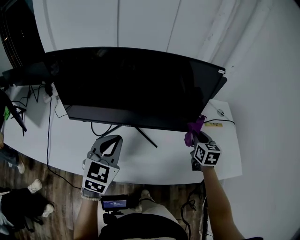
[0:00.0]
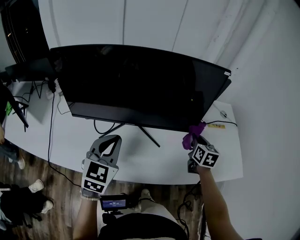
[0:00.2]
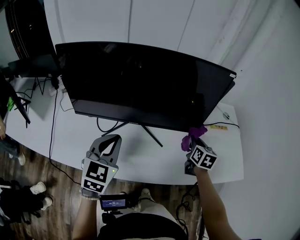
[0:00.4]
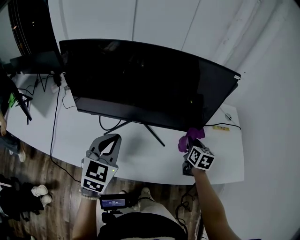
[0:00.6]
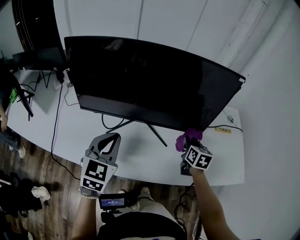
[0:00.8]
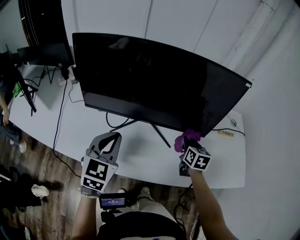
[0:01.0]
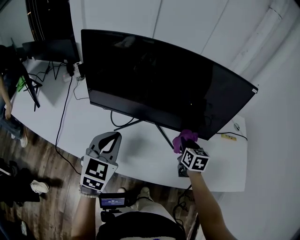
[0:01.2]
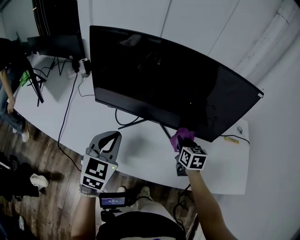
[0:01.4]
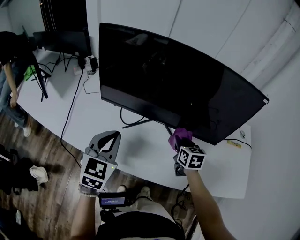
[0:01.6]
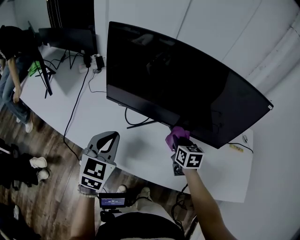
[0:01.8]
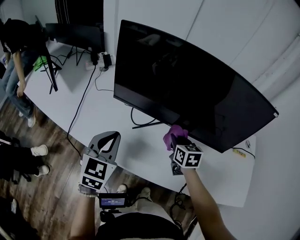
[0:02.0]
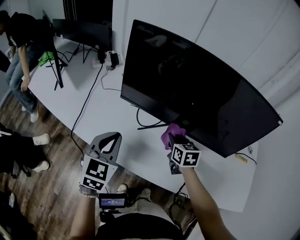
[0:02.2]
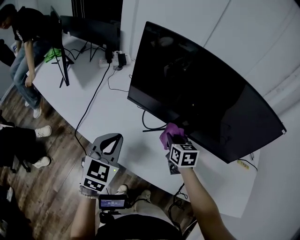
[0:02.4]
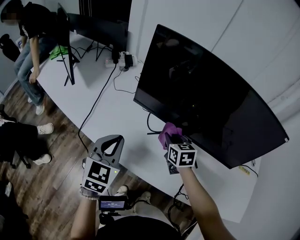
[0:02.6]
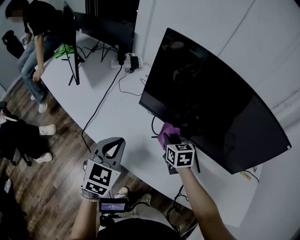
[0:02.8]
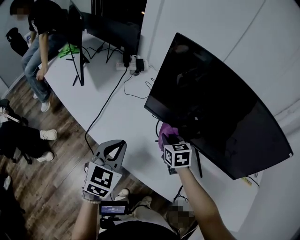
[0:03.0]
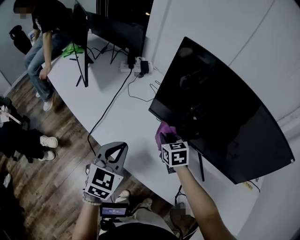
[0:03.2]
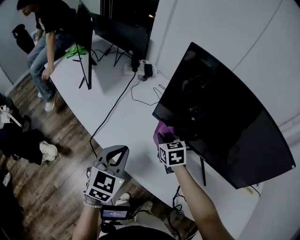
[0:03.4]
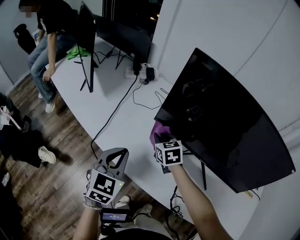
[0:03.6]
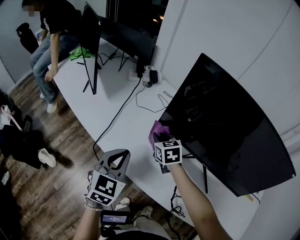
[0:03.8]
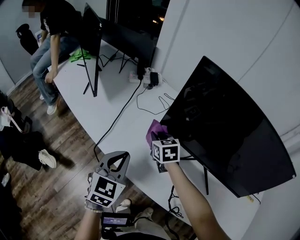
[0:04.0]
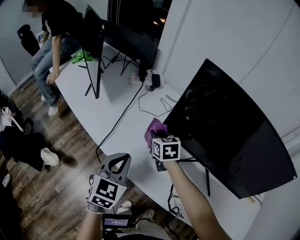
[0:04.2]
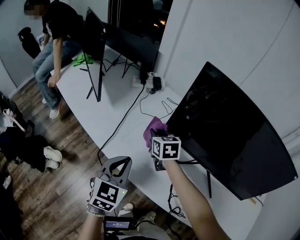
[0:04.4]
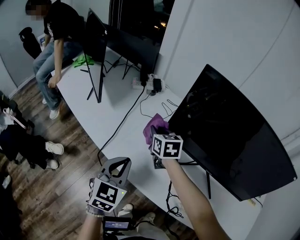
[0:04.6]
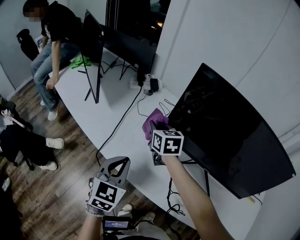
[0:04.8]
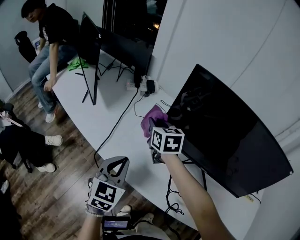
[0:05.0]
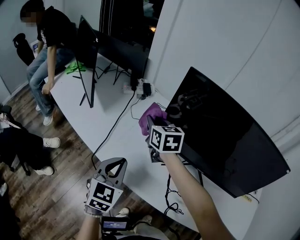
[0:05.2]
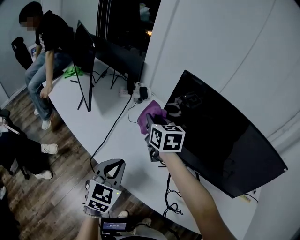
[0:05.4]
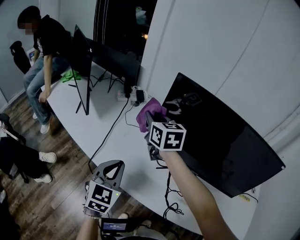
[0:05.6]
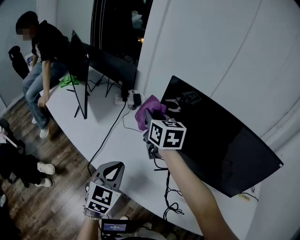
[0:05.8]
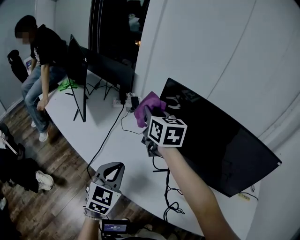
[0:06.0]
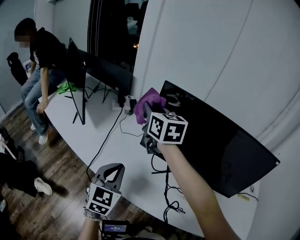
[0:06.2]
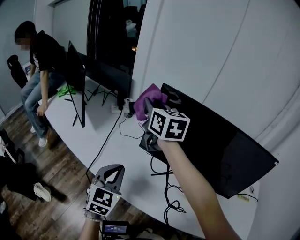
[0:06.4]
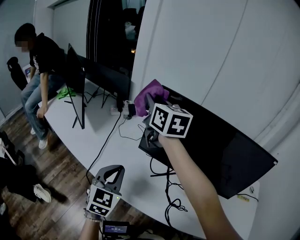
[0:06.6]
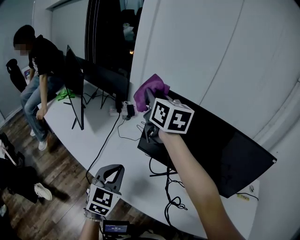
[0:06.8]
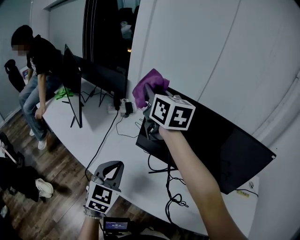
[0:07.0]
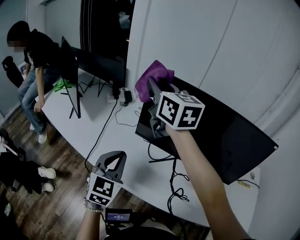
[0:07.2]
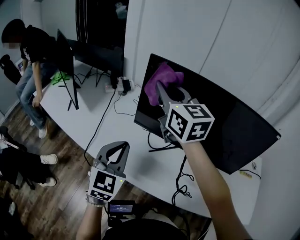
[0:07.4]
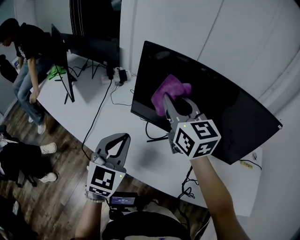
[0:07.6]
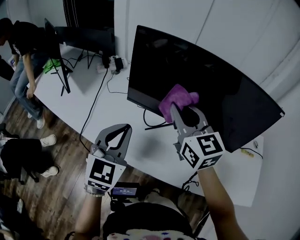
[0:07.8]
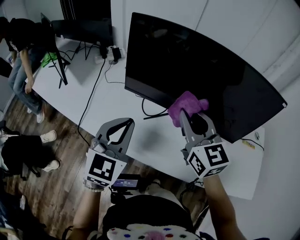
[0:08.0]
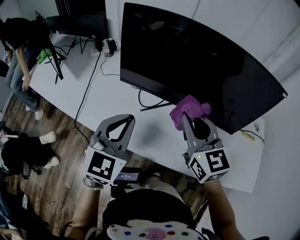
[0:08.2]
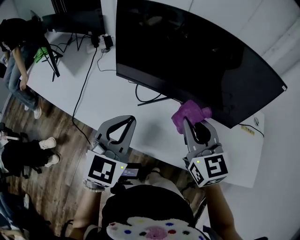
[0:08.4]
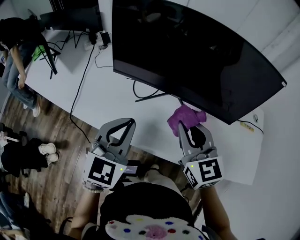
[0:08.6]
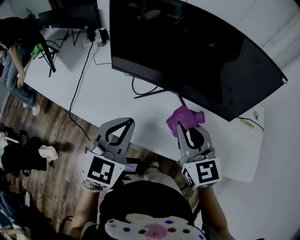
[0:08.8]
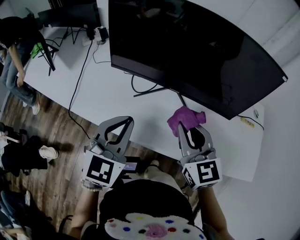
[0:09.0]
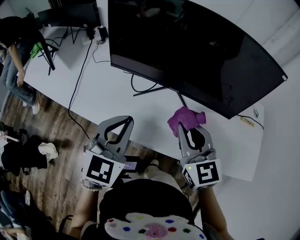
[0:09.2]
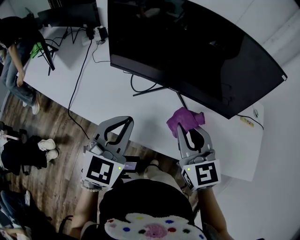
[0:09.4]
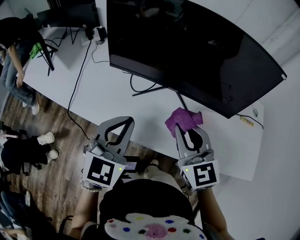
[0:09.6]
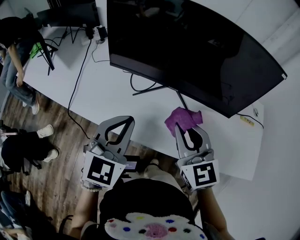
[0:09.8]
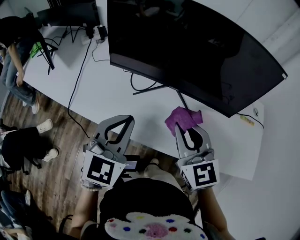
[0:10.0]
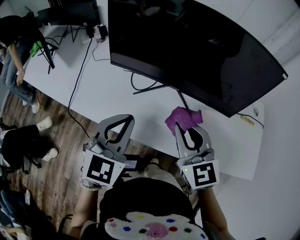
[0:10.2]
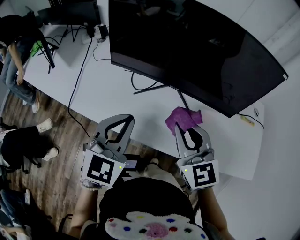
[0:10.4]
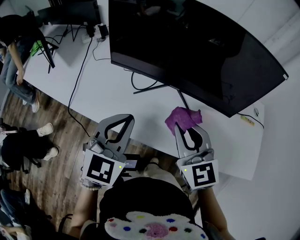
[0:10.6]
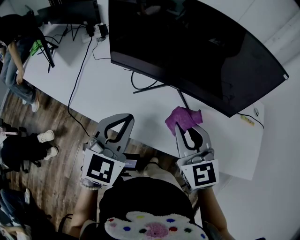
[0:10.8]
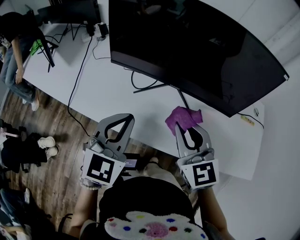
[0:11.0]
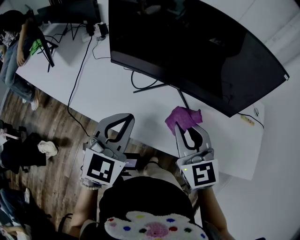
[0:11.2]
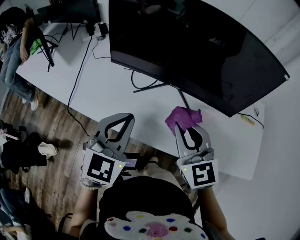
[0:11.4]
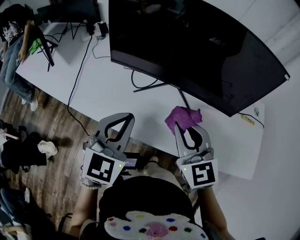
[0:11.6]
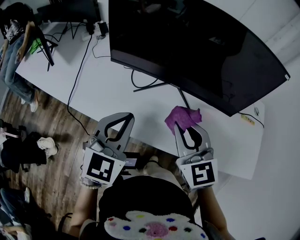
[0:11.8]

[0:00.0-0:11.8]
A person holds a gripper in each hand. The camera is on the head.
0:00.0 to 0:01.4: The right gripper goes roughly 20 cm to the left, while the left gripper heads to the left, covering approximately 10 cm.
0:01.4 to 0:03.0: The right gripper is displaced to the left by about 30 cm, and rotates some 30 degrees; the left gripper travels to the left by roughly 15 cm.
0:03.0 to 0:04.4: The right gripper heads to the left and forward, covering approximately 20 cm. The left gripper travels to the left by some 5 cm.
0:04.4 to 0:06.0: The left gripper heads upward, covering some 5 cm; the right gripper heads upward, covering roughly 25 cm, and rotates about 20 degrees.
0:06.0 to 0:07.4: The left gripper is displaced to the right by about 5 cm. Meanwhile the right gripper is displaced to the right, upward and backward by approximately 15 cm.
0:07.4 to 0:08.8: The right gripper travels backward, to the right and downward by approximately 35 cm, and changes its angle by some 20 degrees. Meanwhile the left gripper heads to the right and backward, covering roughly 15 cm.
0:08.8 to 0:10.4: The grippers move only a little.
0:10.4 to 0:11.8: Both grippers stay about where they are.

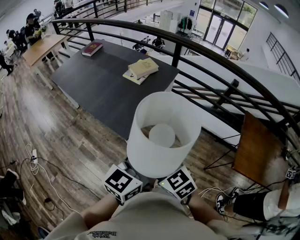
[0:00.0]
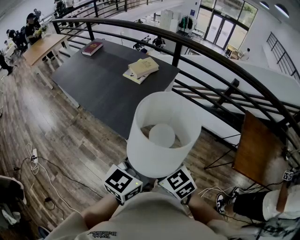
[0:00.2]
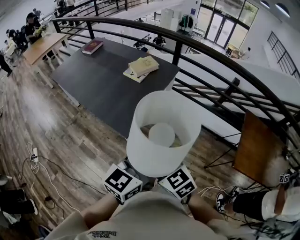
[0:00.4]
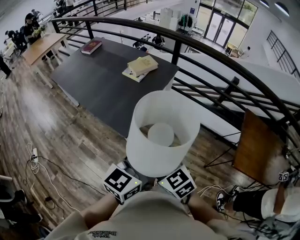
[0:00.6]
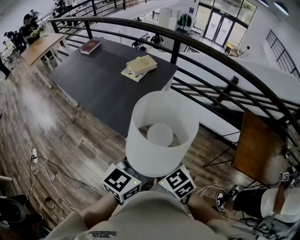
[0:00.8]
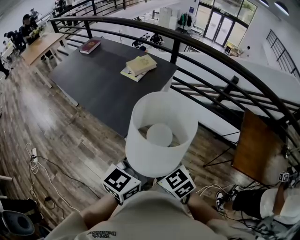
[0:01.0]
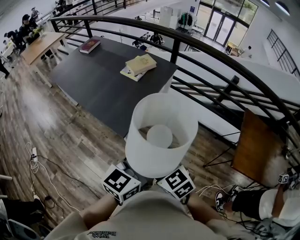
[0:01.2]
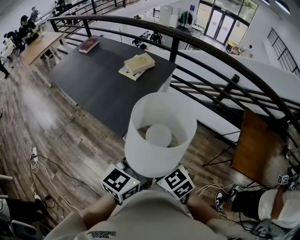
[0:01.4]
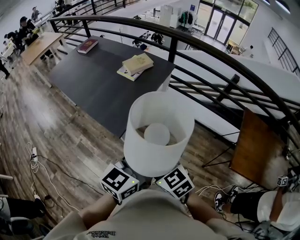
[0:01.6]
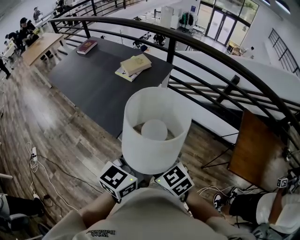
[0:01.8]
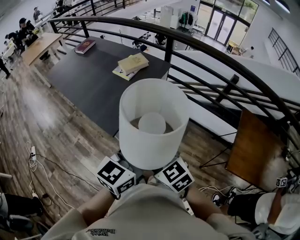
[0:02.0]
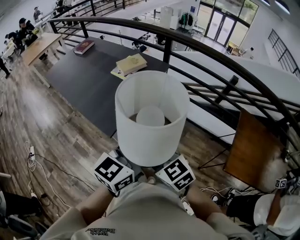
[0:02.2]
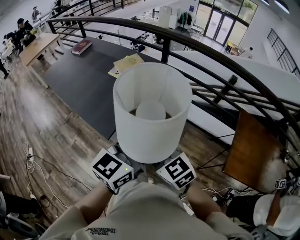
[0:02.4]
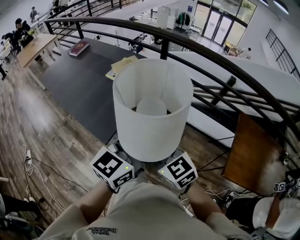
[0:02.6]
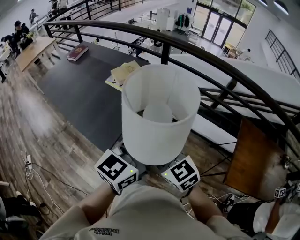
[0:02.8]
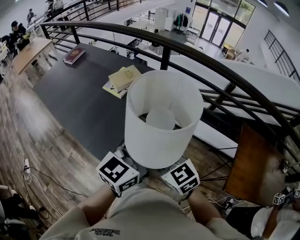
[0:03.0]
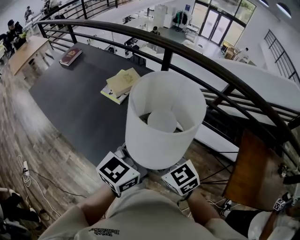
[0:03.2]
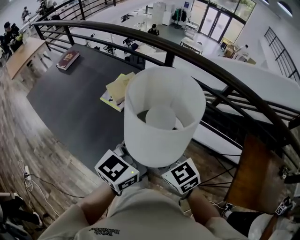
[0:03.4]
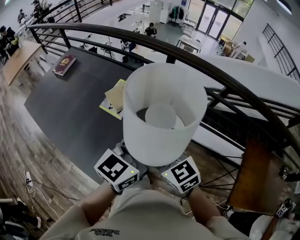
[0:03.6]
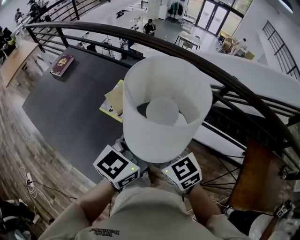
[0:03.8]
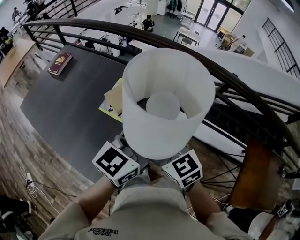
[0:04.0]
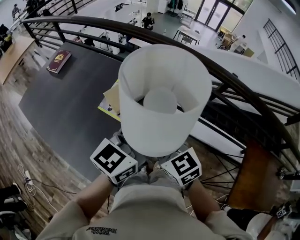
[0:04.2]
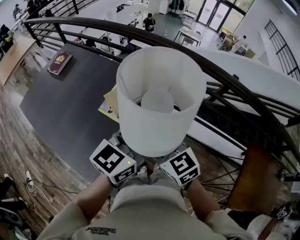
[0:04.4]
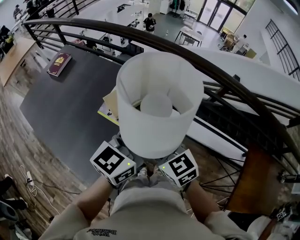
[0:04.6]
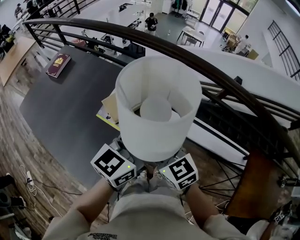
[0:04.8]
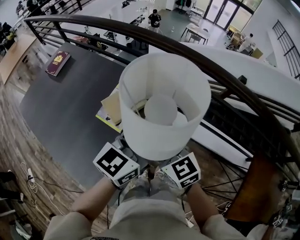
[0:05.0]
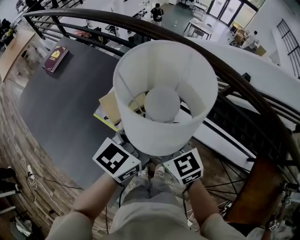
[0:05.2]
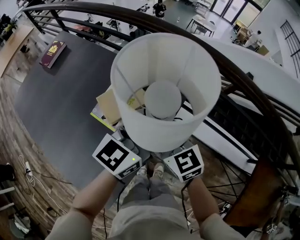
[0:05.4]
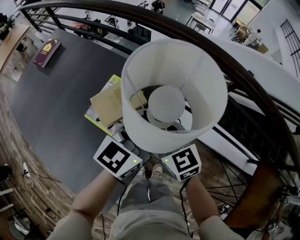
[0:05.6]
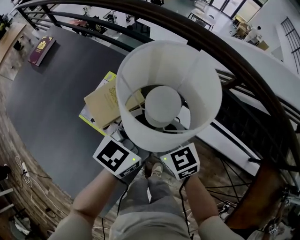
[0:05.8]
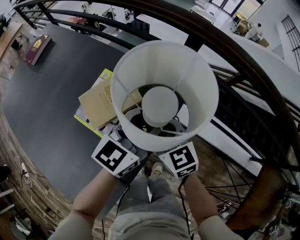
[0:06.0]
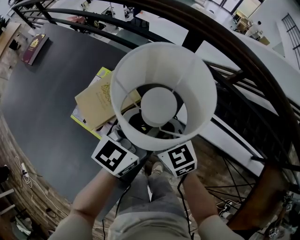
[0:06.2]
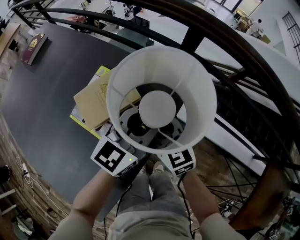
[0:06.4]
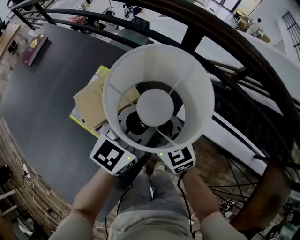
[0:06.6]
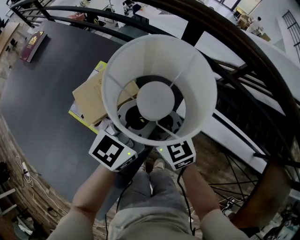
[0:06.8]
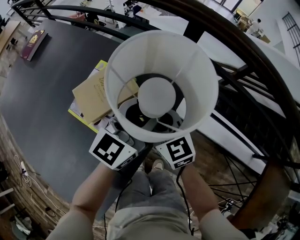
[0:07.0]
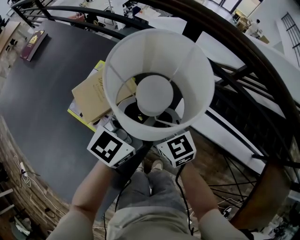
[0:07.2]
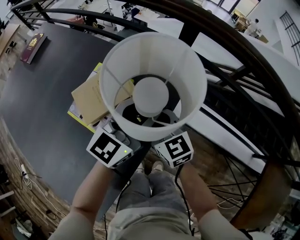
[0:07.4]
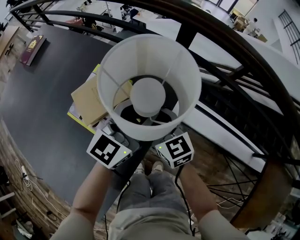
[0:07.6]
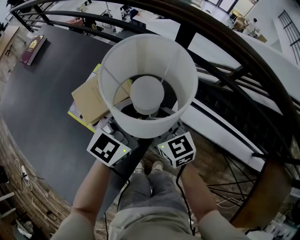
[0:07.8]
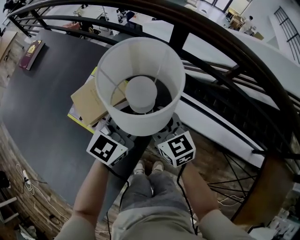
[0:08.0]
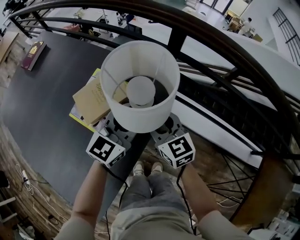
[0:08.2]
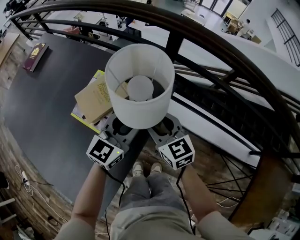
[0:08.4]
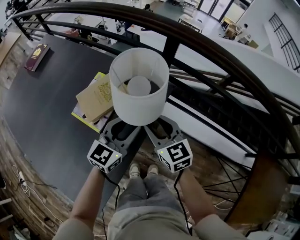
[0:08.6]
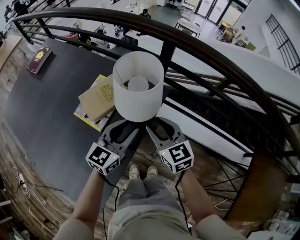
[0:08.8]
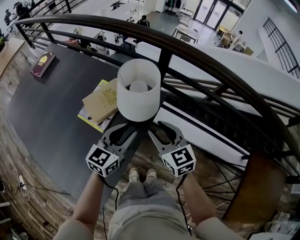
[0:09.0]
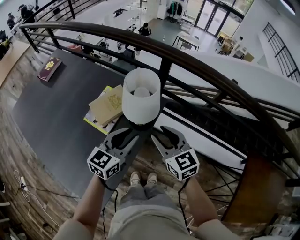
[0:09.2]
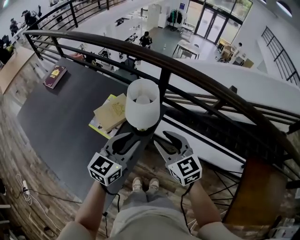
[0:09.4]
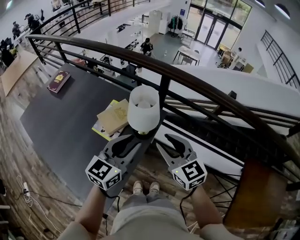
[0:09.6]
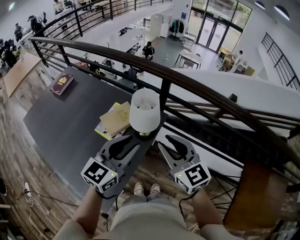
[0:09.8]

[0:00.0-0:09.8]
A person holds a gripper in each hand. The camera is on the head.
0:00.0 to 0:01.4: The grippers move only a little.
0:01.4 to 0:02.8: The two grippers go approximately 15 cm forward and to the right.
0:02.8 to 0:04.2: The grippers both shift forward by roughly 35 cm.
0:04.2 to 0:05.6: The two grippers go roughly 25 cm forward and downward.
0:05.6 to 0:07.0: Both grippers travel together downward, about 10 cm.
0:07.0 to 0:08.4: The left gripper shifts roughly 5 cm backward, while the right gripper shifts by about 5 cm.
0:08.4 to 0:09.8: Both grippers move upward and backward, roughly 30 cm.

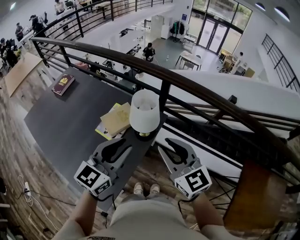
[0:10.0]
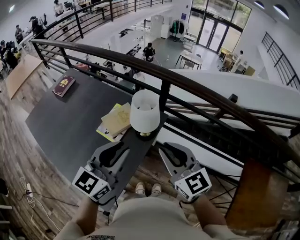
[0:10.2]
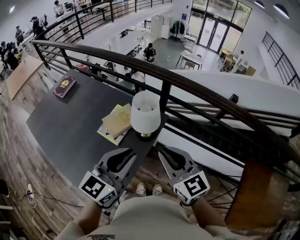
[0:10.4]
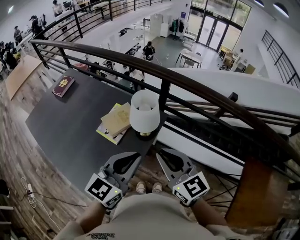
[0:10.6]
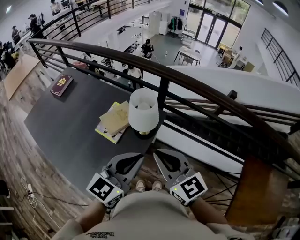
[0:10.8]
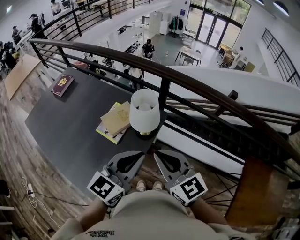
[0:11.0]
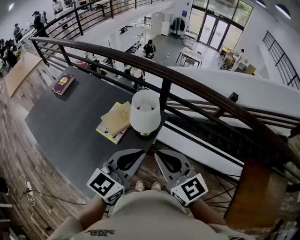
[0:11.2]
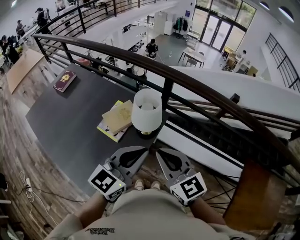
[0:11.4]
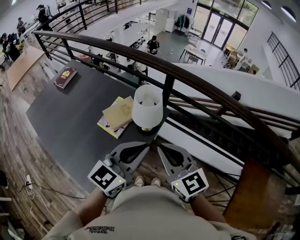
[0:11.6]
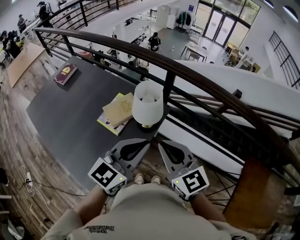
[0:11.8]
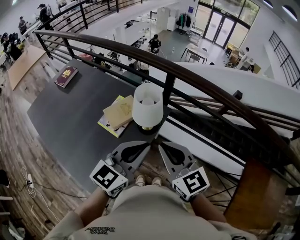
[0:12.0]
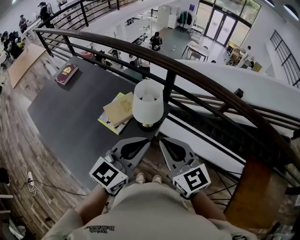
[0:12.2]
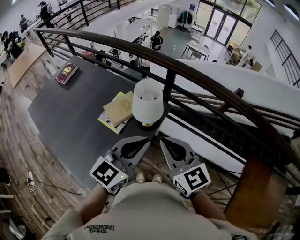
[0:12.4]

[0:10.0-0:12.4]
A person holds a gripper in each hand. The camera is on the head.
0:10.0 to 0:11.2: The left gripper travels to the right by some 5 cm, and closes. The right gripper closes up.
0:11.2 to 0:12.4: There are only small adjustments of the grippers.
